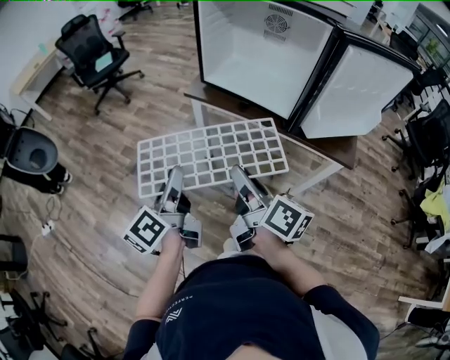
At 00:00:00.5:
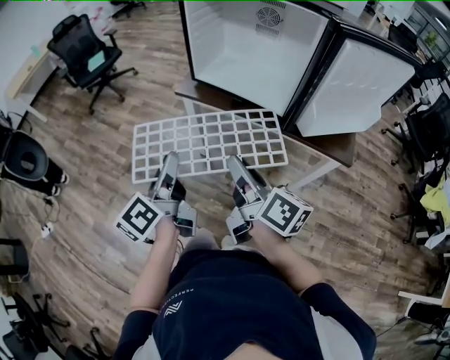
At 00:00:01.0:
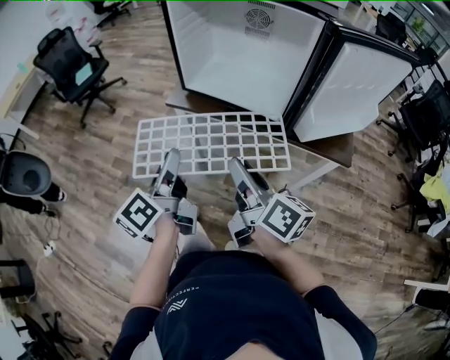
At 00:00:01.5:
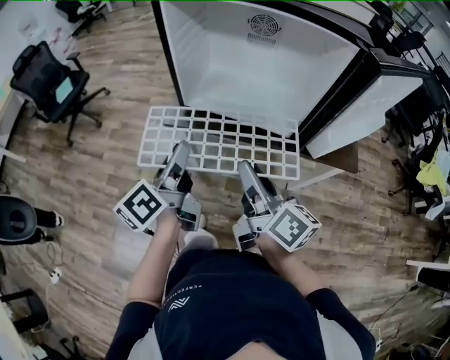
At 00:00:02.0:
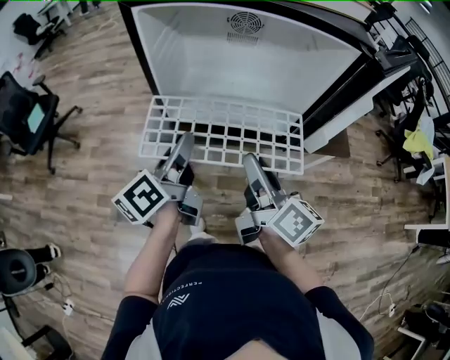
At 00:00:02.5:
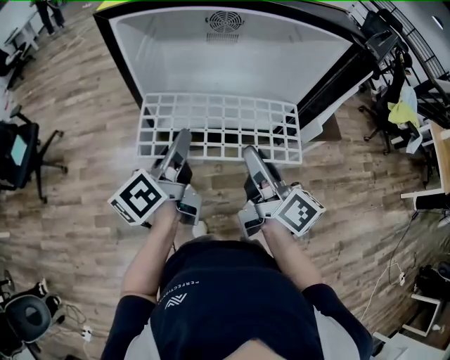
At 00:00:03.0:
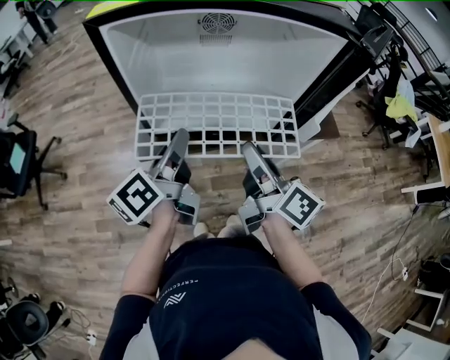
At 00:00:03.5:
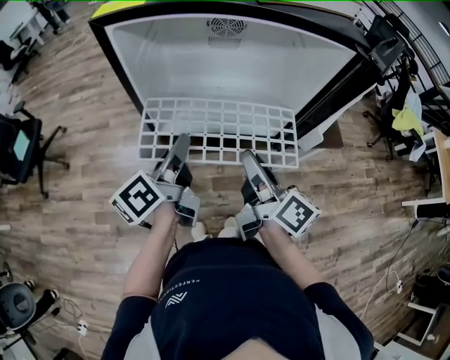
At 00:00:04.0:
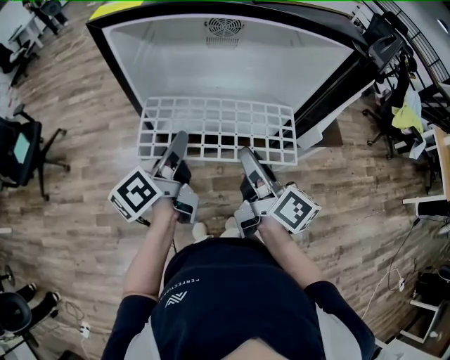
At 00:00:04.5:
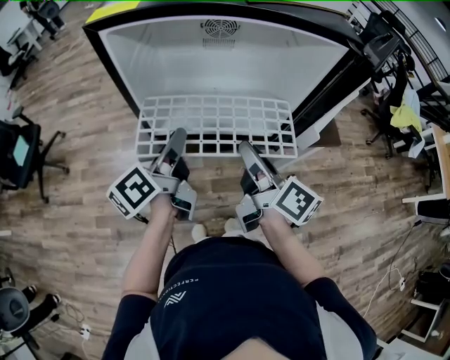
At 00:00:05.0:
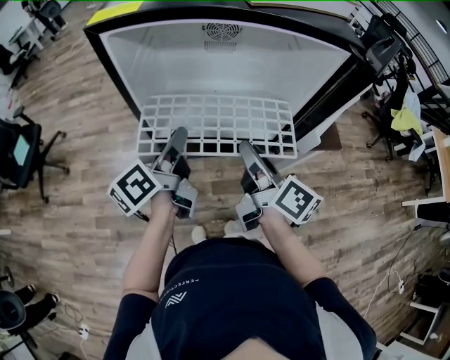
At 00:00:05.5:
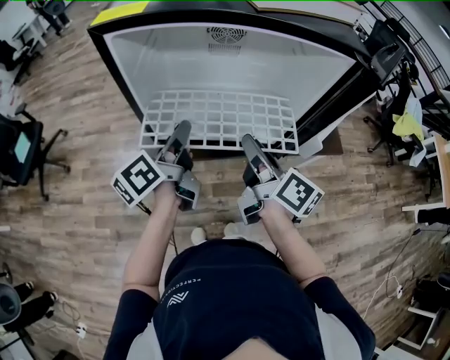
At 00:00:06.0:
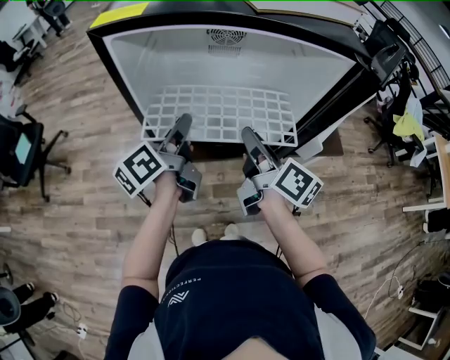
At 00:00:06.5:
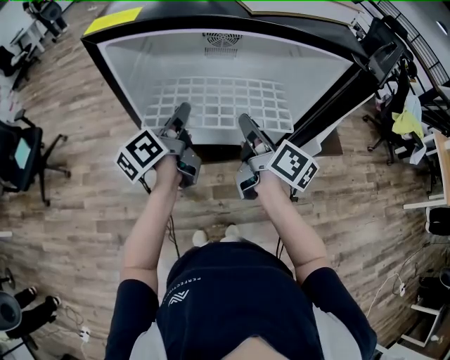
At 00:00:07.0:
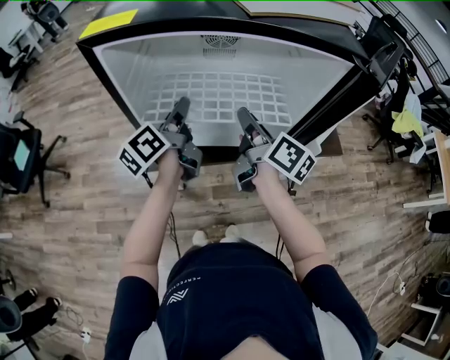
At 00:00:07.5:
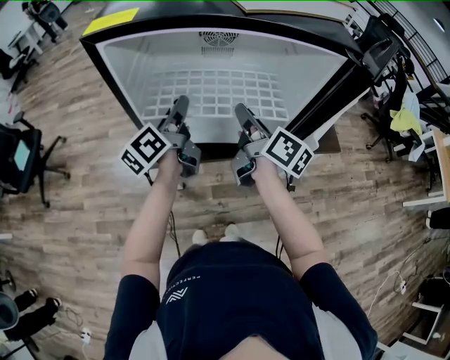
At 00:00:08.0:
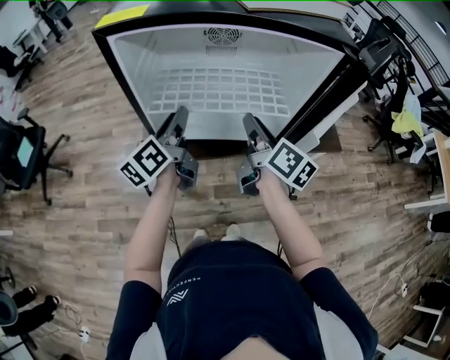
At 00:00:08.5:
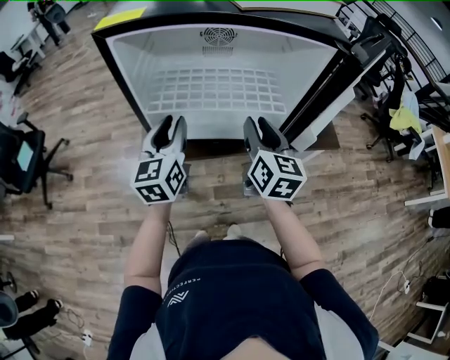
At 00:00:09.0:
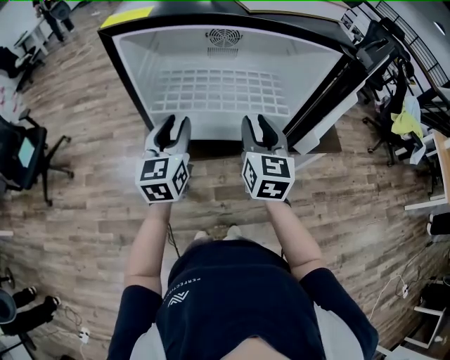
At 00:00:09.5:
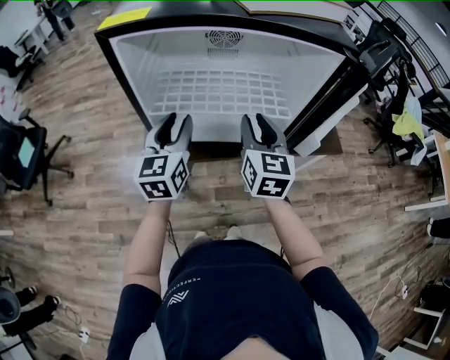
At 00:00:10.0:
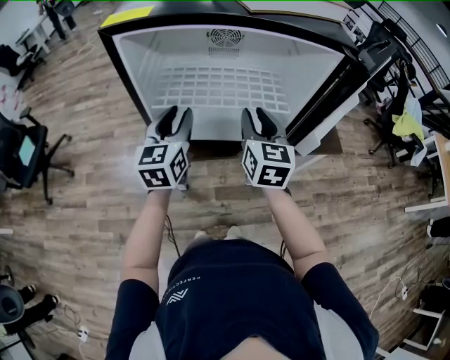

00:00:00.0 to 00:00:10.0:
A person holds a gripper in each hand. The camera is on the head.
00:00:00.0 to 00:00:02.0: The left gripper moves roughly 30 cm, and turns by some 30 degrees. The right gripper moves some 20 cm, and swivels about 30 degrees.
00:00:02.0 to 00:00:04.0: The left gripper is displaced forward by roughly 5 cm.
00:00:04.0 to 00:00:06.0: The grippers both shift forward by approximately 5 cm.
00:00:08.0 to 00:00:10.0: The left gripper rotates around the line of its fingers by some 40 degrees, clockwise from behind; the right gripper rotates around the line of its fingers by some 50 degrees, counterclockwise from behind.

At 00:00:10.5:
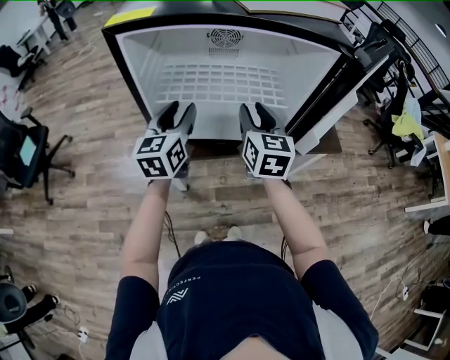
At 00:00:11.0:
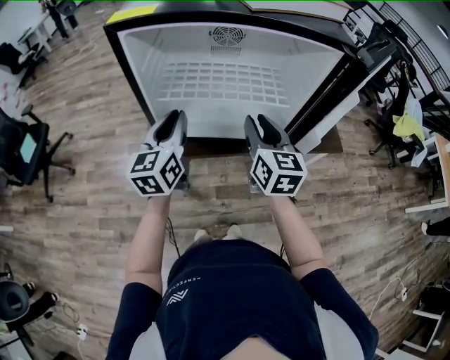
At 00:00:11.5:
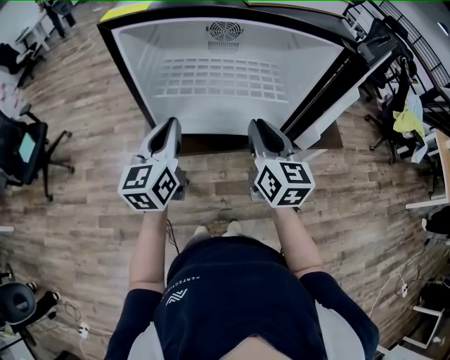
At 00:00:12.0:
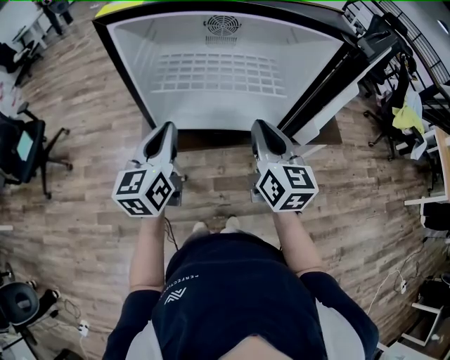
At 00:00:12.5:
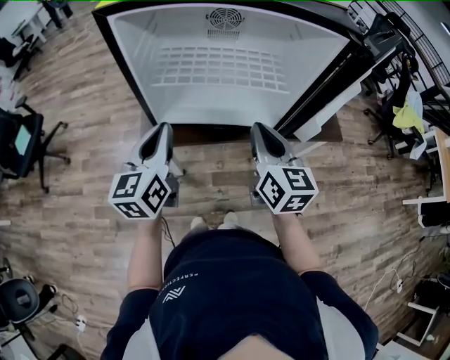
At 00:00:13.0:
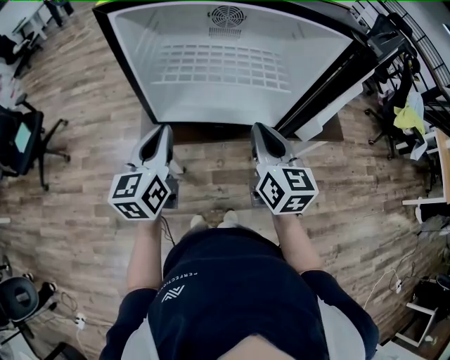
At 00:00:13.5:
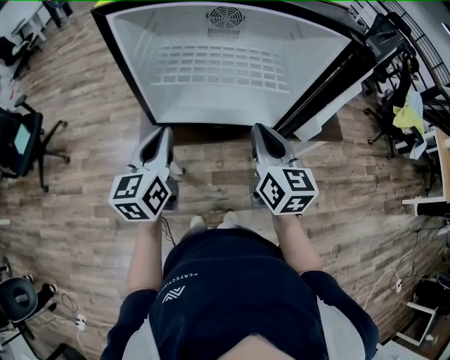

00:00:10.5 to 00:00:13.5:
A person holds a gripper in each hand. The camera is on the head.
00:00:10.5 to 00:00:12.0: Both grippers travel together backward, some 10 cm. The right gripper closes; the left gripper closes its fingers.
00:00:12.0 to 00:00:13.5: The grippers move only a little.

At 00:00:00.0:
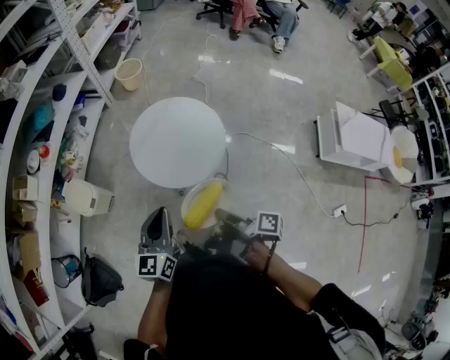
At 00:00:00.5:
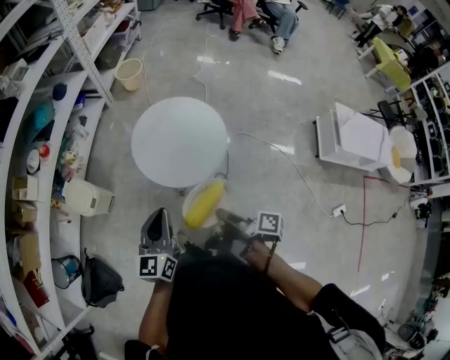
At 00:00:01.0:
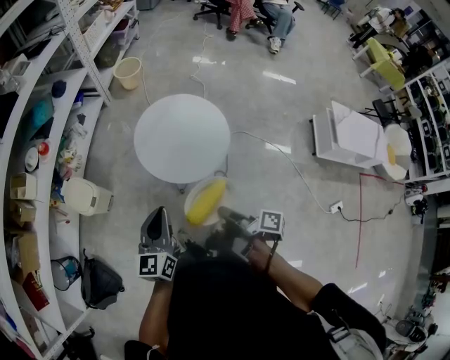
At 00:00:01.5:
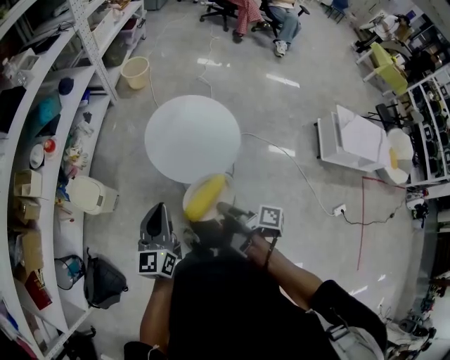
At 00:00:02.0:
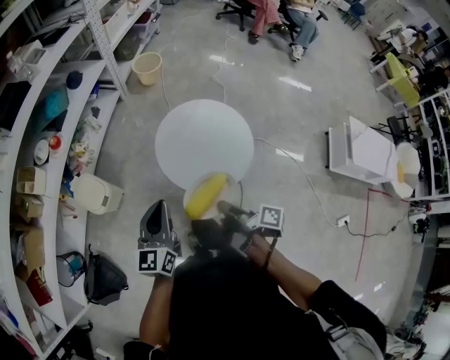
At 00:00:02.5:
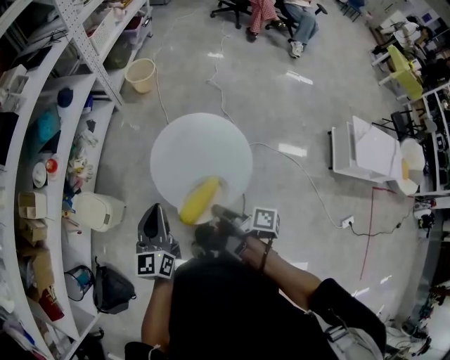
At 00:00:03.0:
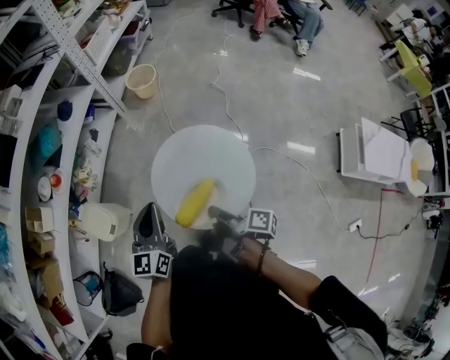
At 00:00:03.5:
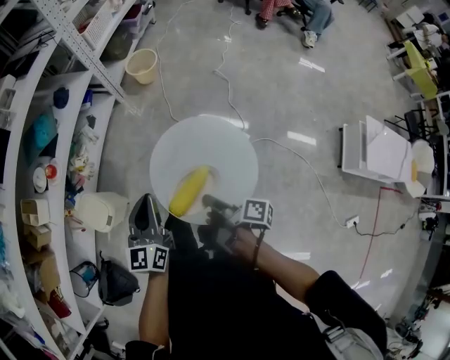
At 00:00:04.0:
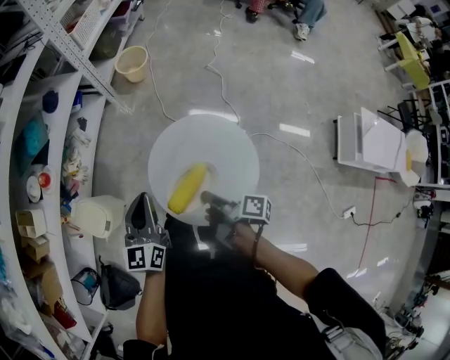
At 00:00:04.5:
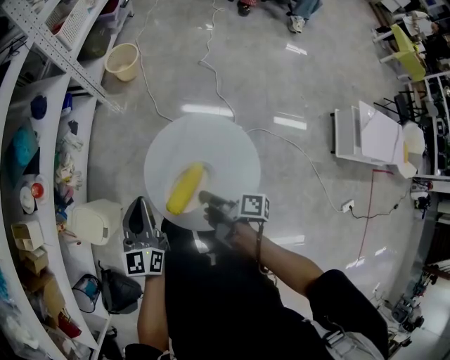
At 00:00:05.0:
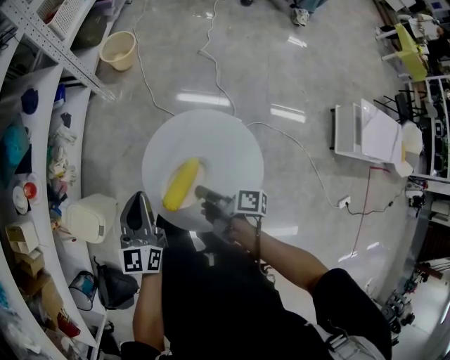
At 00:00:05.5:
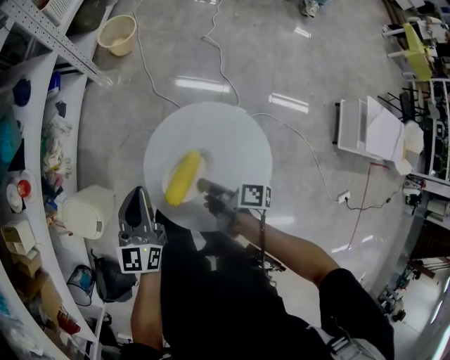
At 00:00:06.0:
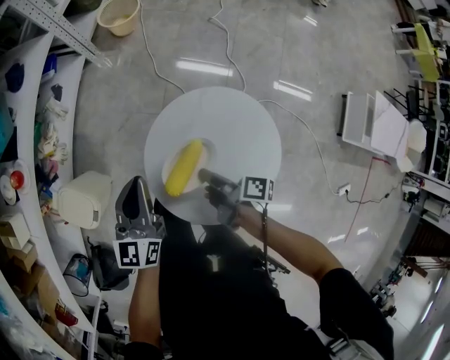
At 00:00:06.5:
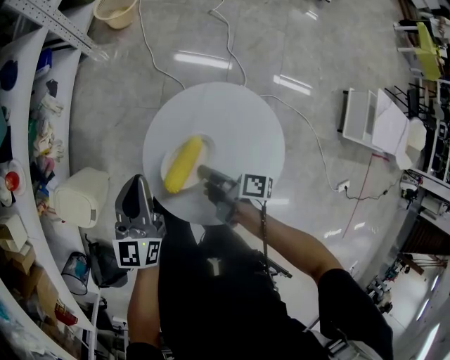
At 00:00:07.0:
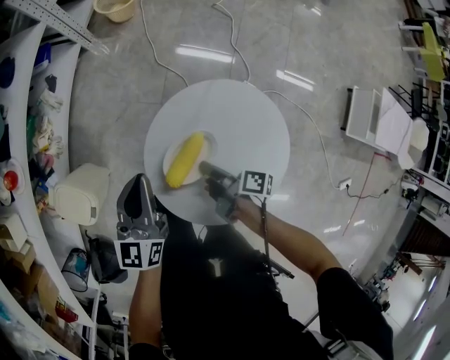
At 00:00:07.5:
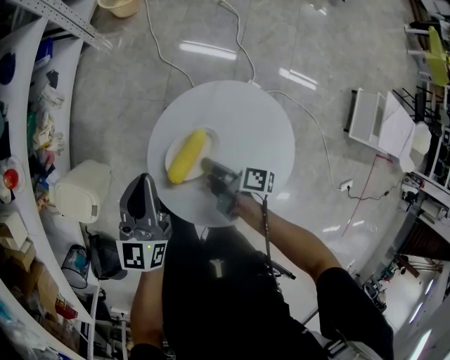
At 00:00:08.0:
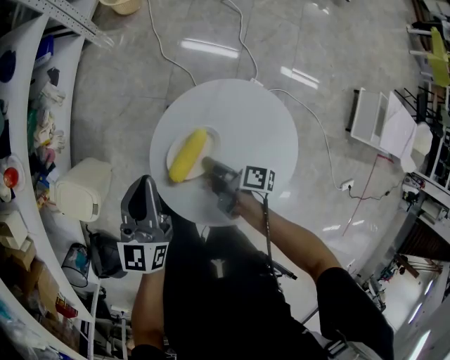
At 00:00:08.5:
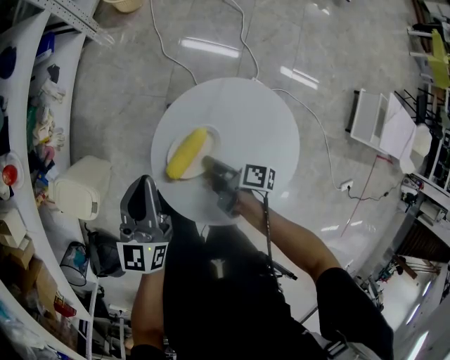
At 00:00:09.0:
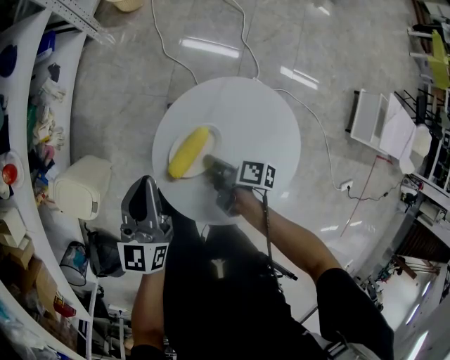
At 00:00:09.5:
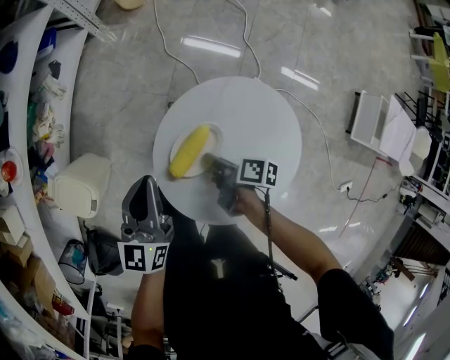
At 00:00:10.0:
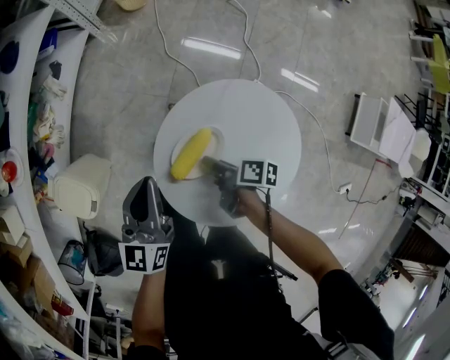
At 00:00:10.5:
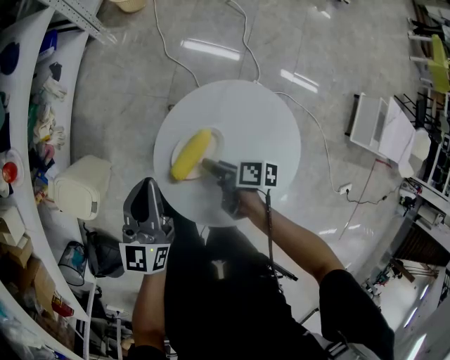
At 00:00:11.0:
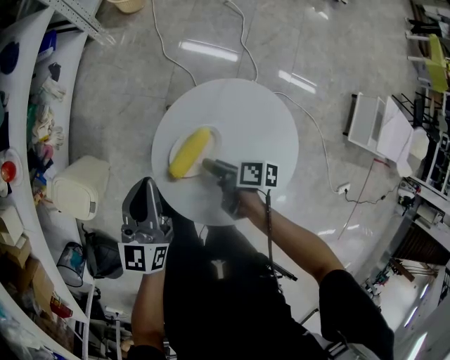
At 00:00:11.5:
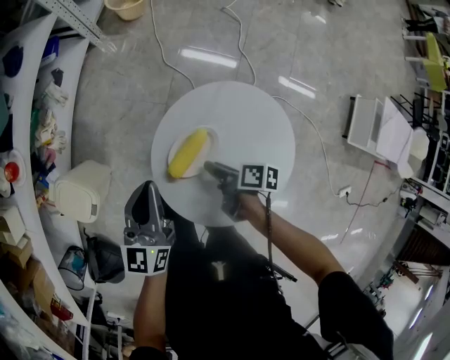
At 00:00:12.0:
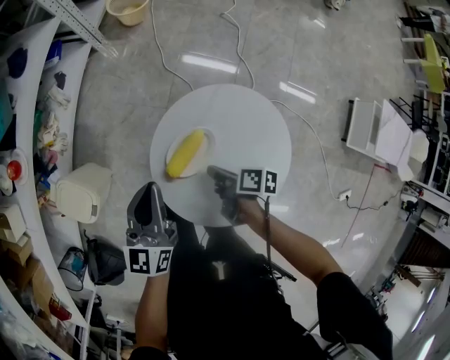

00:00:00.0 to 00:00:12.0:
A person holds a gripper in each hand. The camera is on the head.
00:00:00.0 to 00:00:02.0: The left gripper changes place by about 15 cm.
00:00:02.0 to 00:00:04.0: The left gripper moves roughly 25 cm.
00:00:04.0 to 00:00:06.0: The left gripper heads downward, covering about 10 cm.

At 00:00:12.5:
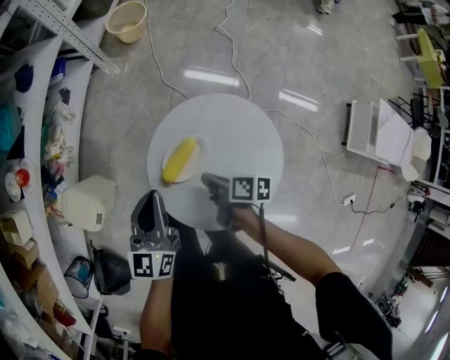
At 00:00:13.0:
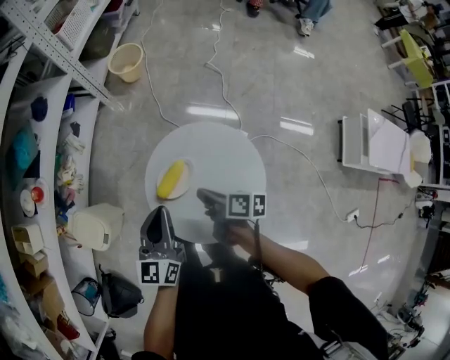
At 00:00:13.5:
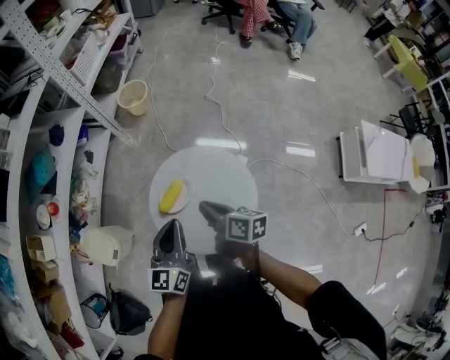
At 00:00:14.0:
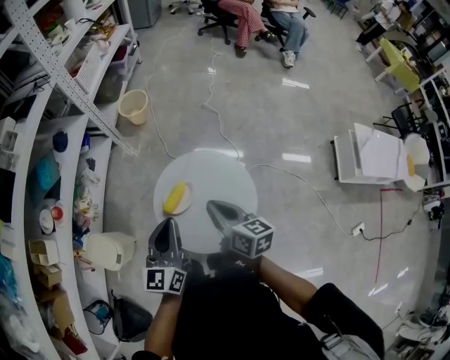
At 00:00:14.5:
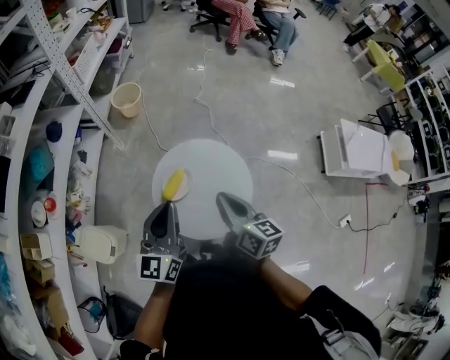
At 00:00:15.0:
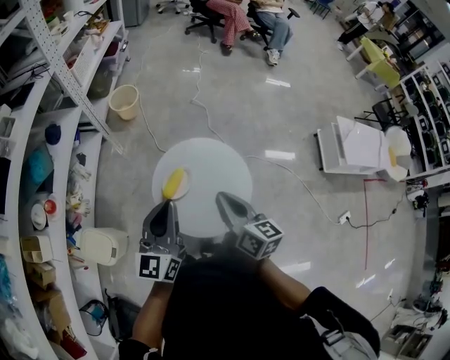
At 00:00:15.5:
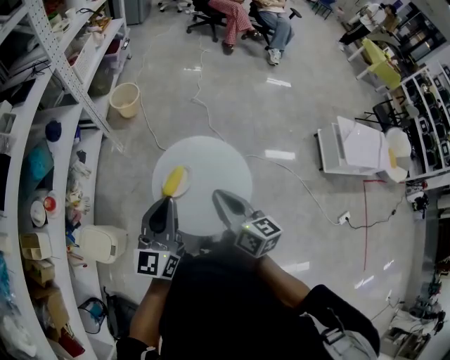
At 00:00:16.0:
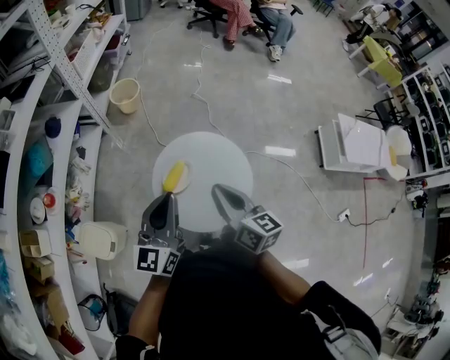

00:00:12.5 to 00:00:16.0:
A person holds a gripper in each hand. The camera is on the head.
00:00:12.5 to 00:00:14.5: The left gripper is displaced upward by some 20 cm.
